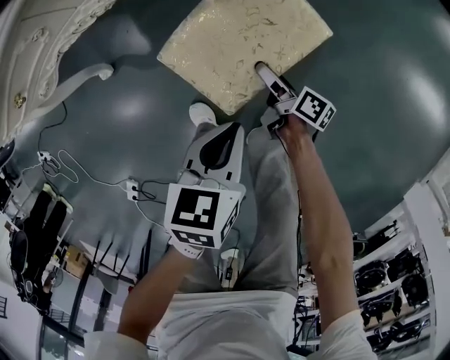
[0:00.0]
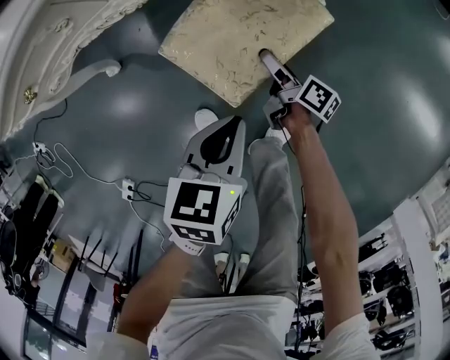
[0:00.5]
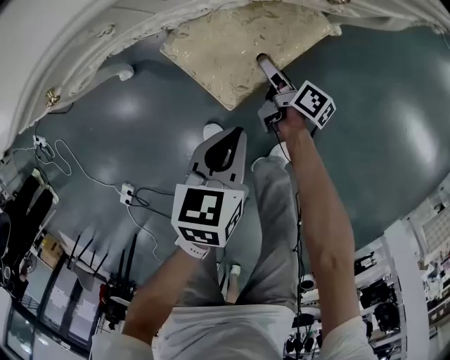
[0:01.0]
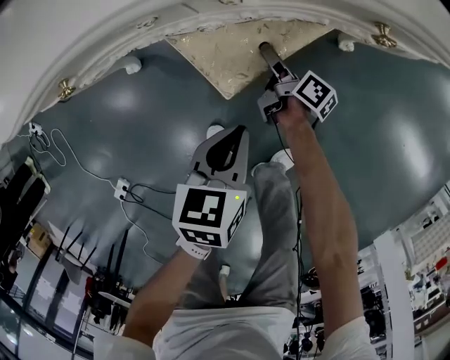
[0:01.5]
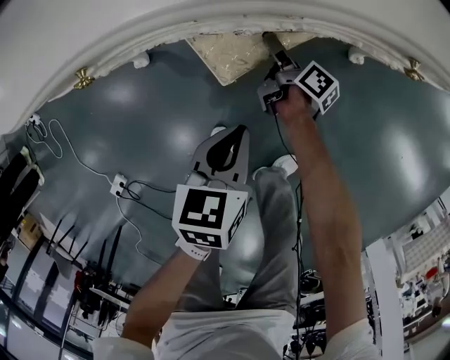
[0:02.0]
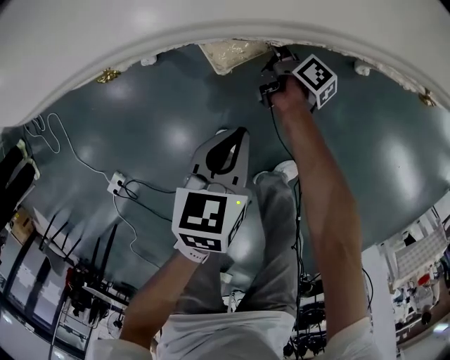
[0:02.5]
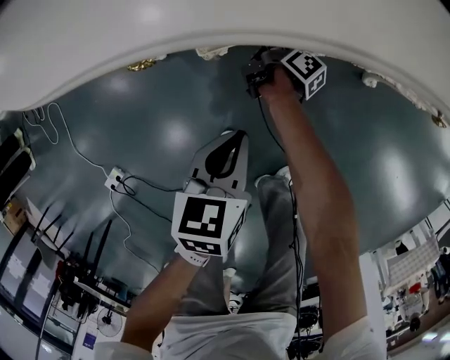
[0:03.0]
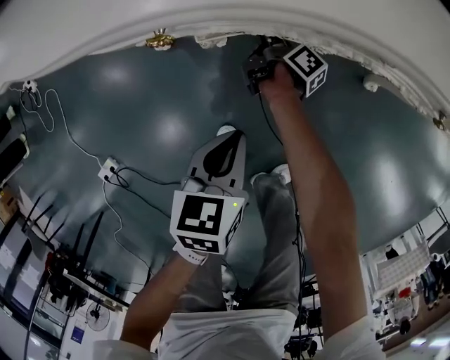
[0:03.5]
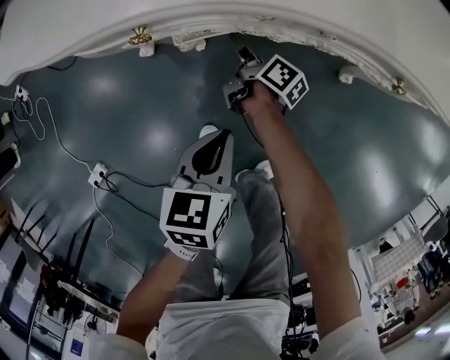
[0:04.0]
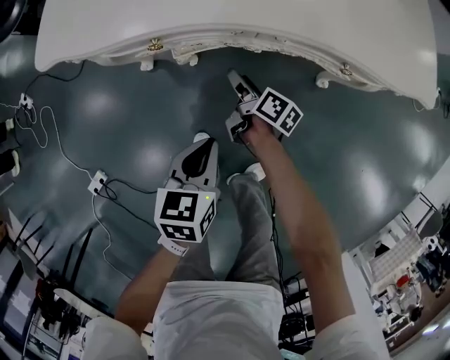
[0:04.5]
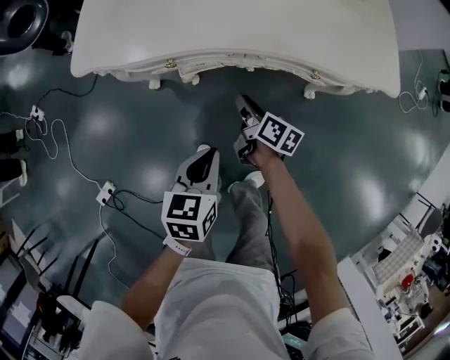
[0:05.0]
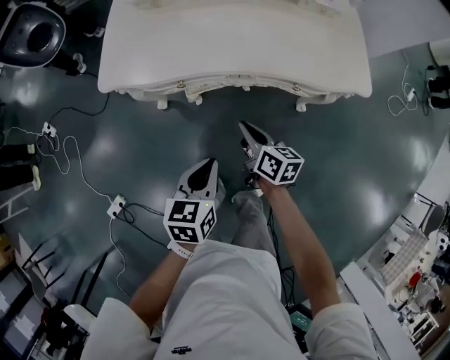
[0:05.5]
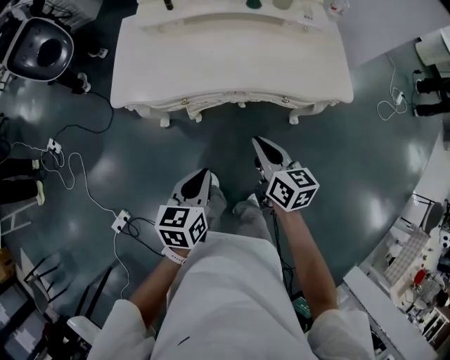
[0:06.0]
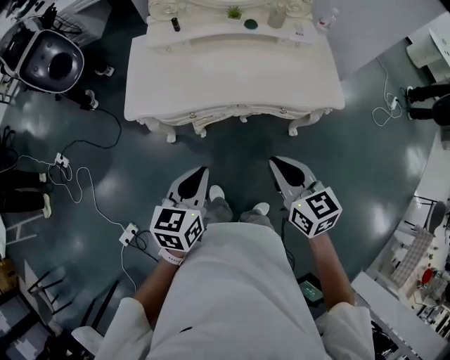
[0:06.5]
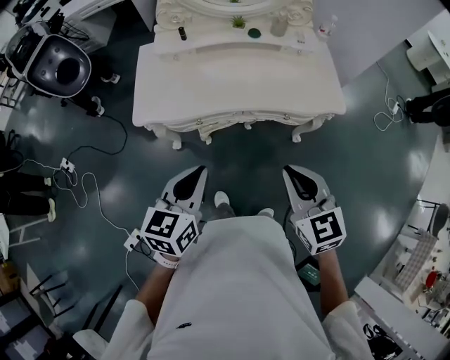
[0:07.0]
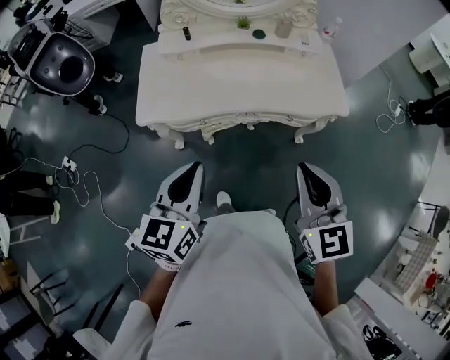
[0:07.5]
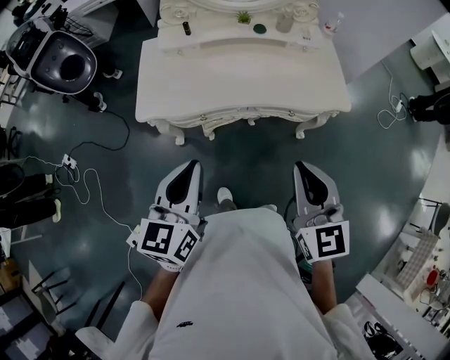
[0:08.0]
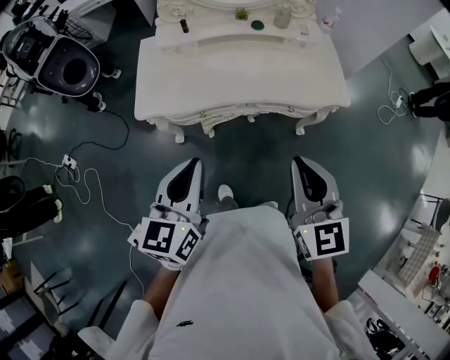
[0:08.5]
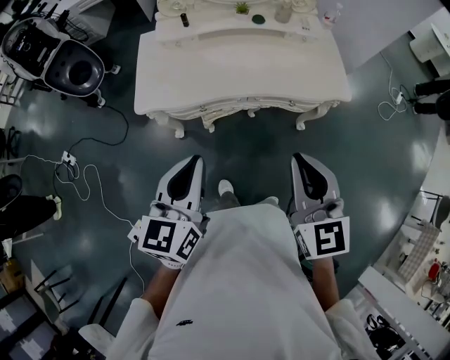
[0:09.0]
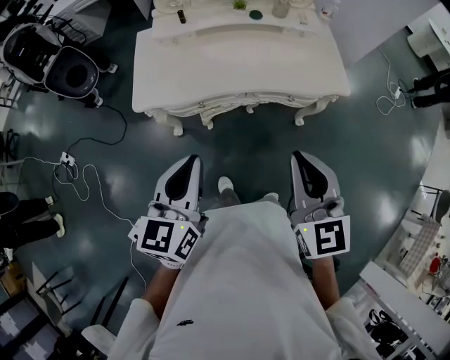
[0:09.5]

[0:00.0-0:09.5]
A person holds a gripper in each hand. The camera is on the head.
0.0 to 2.0 s: The left gripper travels to the left and forward by about 20 cm, and turns by some 20 degrees. Meanwhile the right gripper moves forward and to the left, some 30 cm.
2.0 to 4.0 s: The right gripper heads to the left and upward, covering some 15 cm, while the left gripper moves roughly 5 cm.
4.0 to 5.5 s: The left gripper heads upward, covering approximately 25 cm. Meanwhile the right gripper goes roughly 40 cm upward and backward, turns by some 30 degrees, and closes up.
5.5 to 7.5 s: The grippers both shift upward by about 30 cm. The right gripper rotates around the line of its fingers by roughly 50 degrees, counterclockwise from behind. The left gripper swivels about 30 degrees.
7.5 to 9.5 s: The grippers move only a little.

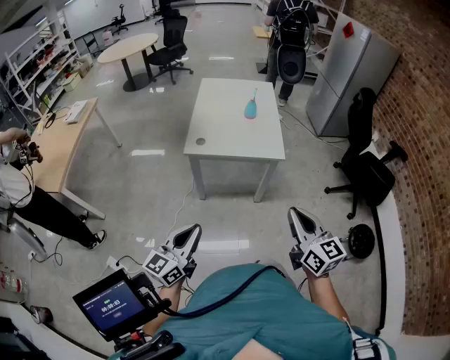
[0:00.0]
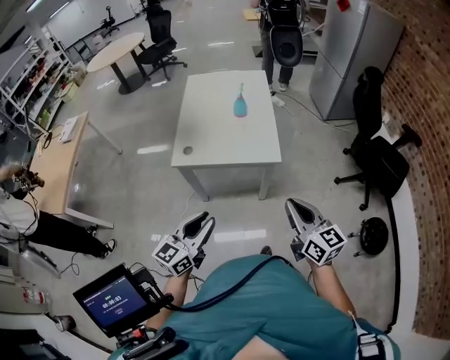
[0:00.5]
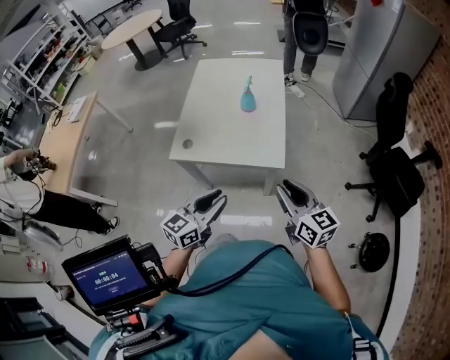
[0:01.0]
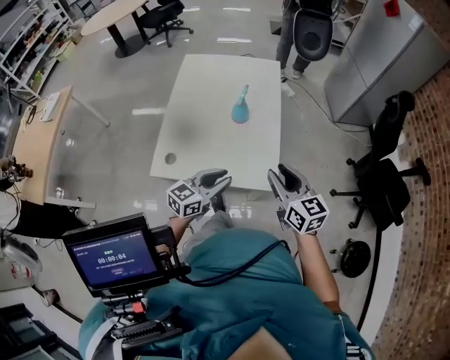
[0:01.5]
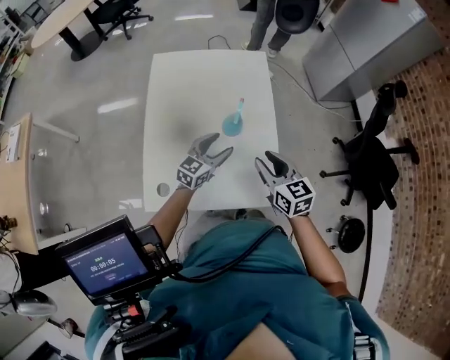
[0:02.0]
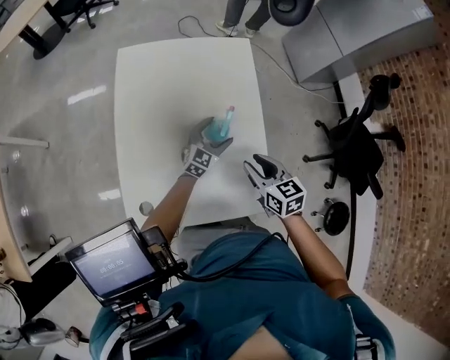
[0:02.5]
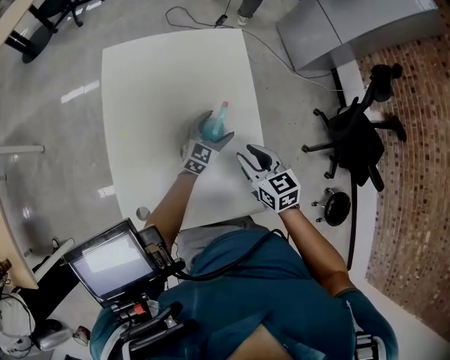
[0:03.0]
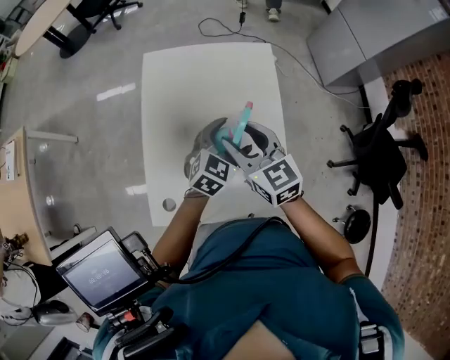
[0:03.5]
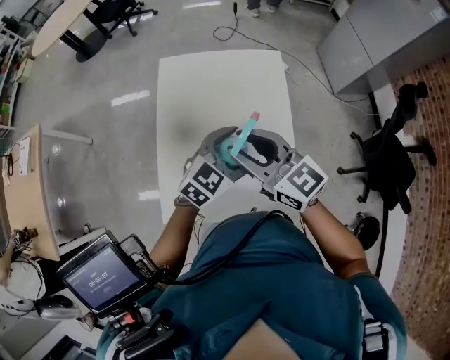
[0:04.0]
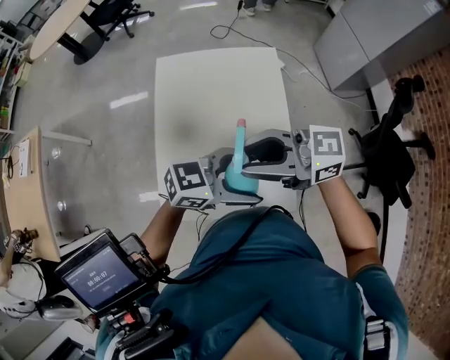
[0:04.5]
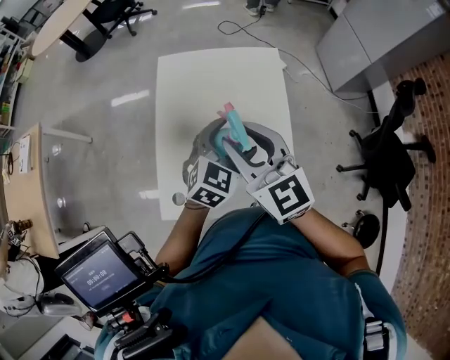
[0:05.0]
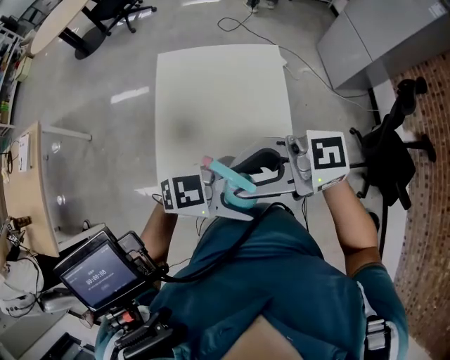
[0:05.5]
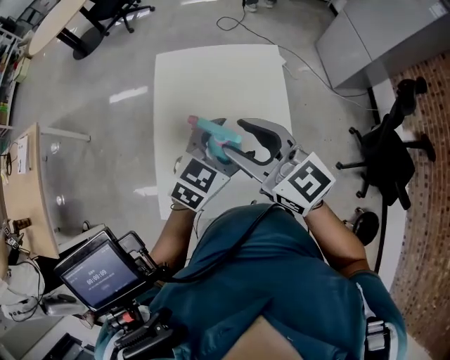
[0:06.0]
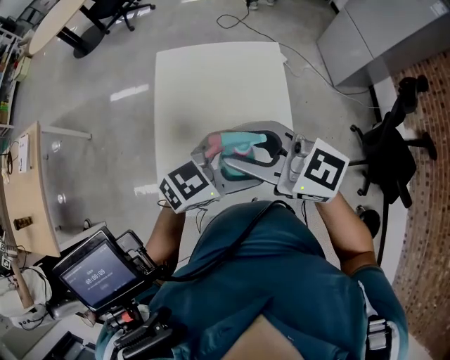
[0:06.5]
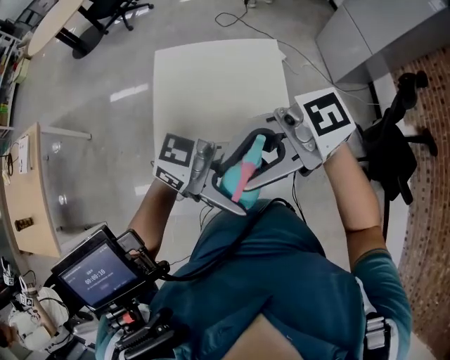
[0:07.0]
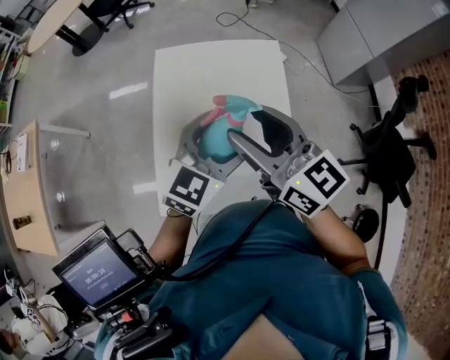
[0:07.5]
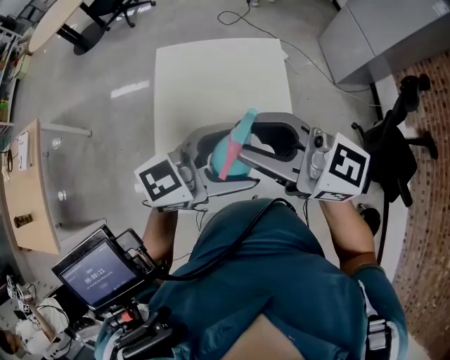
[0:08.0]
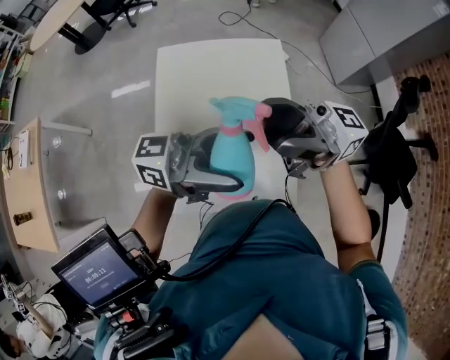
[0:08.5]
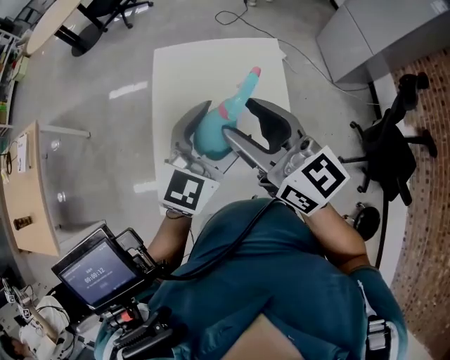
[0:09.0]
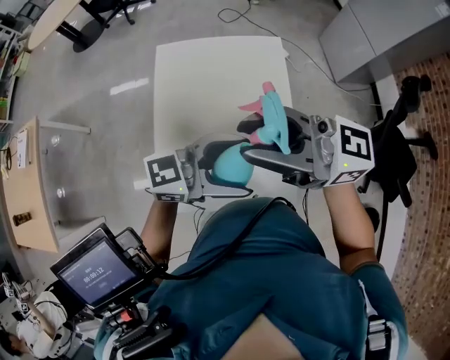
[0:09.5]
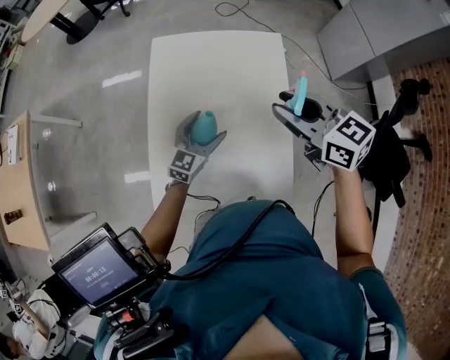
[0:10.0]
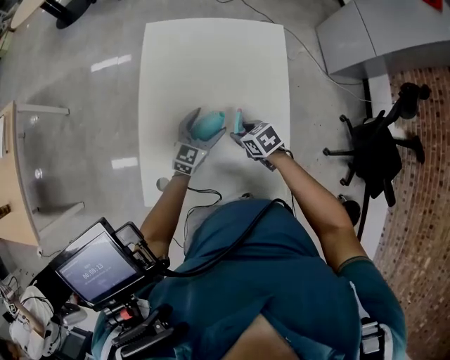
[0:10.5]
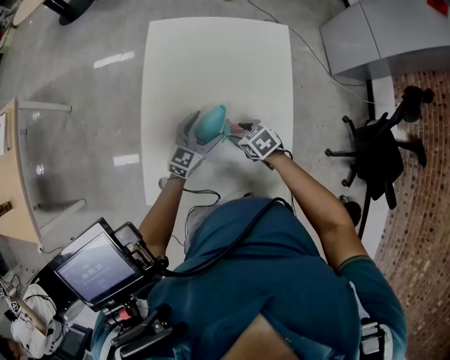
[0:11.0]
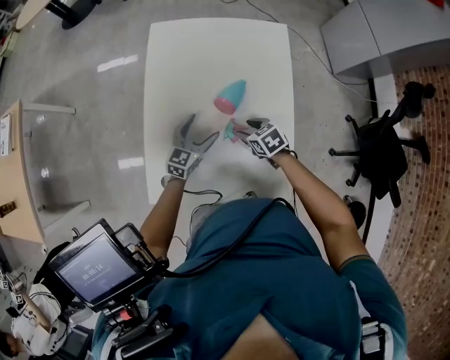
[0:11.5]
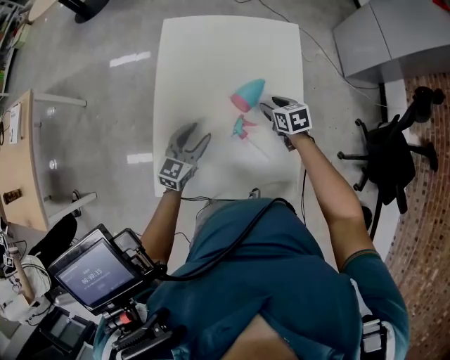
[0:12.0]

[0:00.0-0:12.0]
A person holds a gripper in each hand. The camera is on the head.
0.0 to 2.0 s: The pair of grippers is taken forward, roughly 60 cm. The left gripper changes its angle by about 20 degrees, and opens up; the right gripper opens up.
2.0 to 4.0 s: The left gripper moves upward, about 15 cm, swivels approximately 20 degrees, and opens up. Meanwhile the right gripper heads upward, to the left and forward, covering approximately 20 cm, and swivels roughly 30 degrees.
4.0 to 6.0 s: The left gripper moves up and down over approximately 5 cm, changing direction 2 times.
6.0 to 8.0 s: The left gripper swings up and down, roughly 10 cm each way, with 2 reversals, and turns by about 40 degrees, while the right gripper swings up and down, about 10 cm each way, with 2 reversals, and turns by roughly 20 degrees.
8.0 to 10.0 s: The left gripper shifts approximately 25 cm downward, and rotates about 40 degrees, while the right gripper changes place by some 15 cm, swivels approximately 30 degrees, and opens and closes again.
10.0 to 12.0 s: The right gripper heads downward, covering roughly 30 cm, and tips its fingers downward by roughly 30 degrees. Meanwhile the left gripper moves to the left, about 5 cm, and closes up.

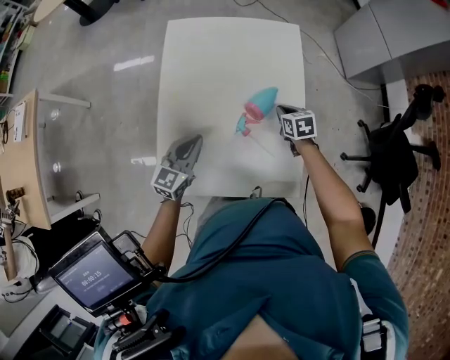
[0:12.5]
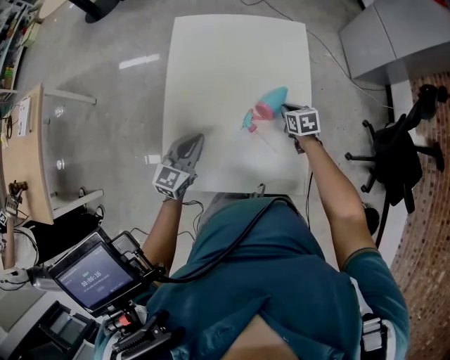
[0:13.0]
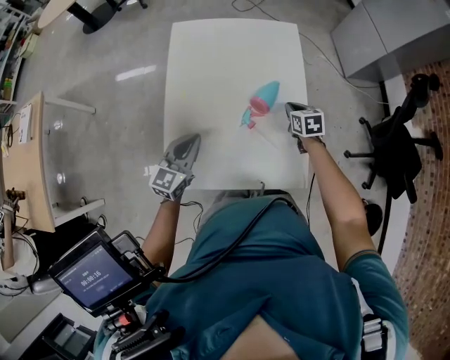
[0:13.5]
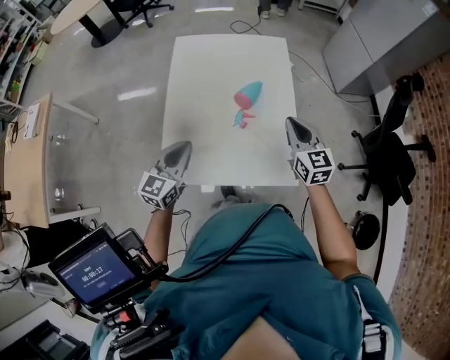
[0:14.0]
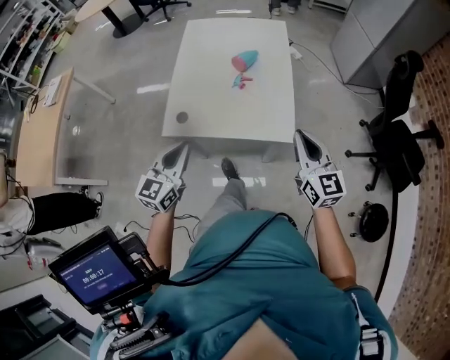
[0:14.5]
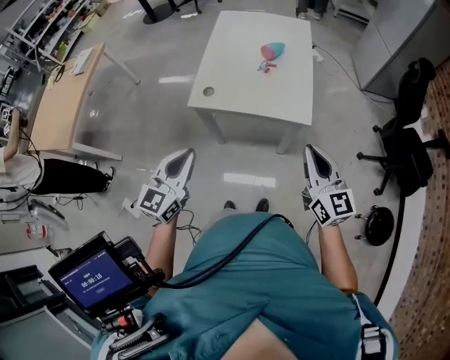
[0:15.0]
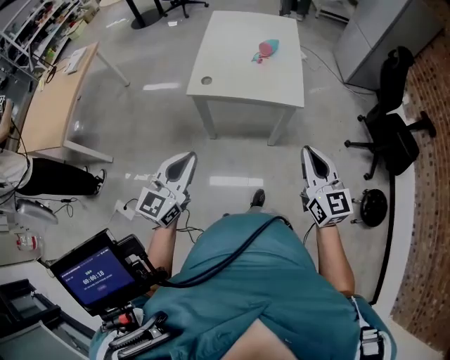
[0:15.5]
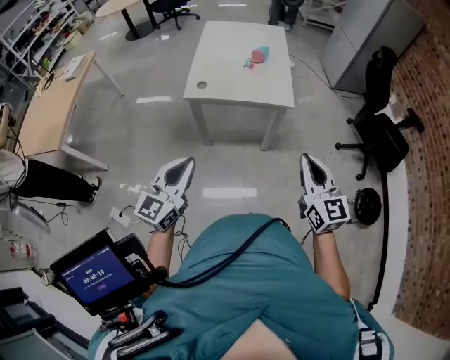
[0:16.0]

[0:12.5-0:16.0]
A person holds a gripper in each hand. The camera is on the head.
12.5 to 14.5 s: The left gripper travels backward by about 30 cm; the right gripper shifts roughly 40 cm backward and upward, and tilts its fingers roughly 50 degrees upward.
14.5 to 16.0 s: The grippers both shift backward by about 30 cm.

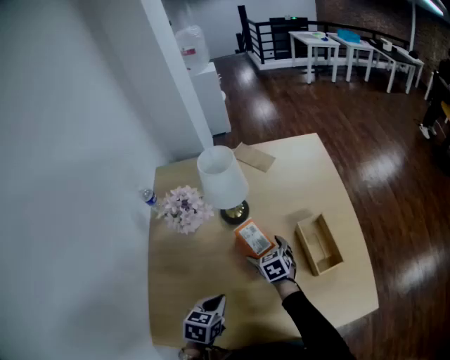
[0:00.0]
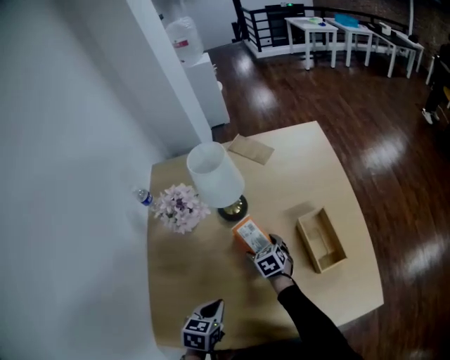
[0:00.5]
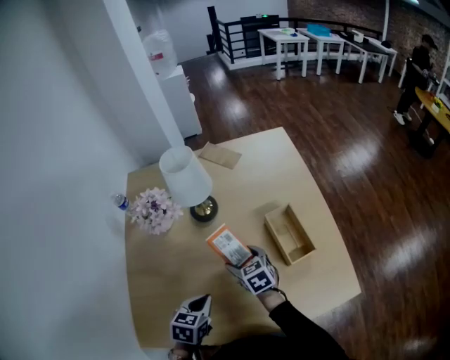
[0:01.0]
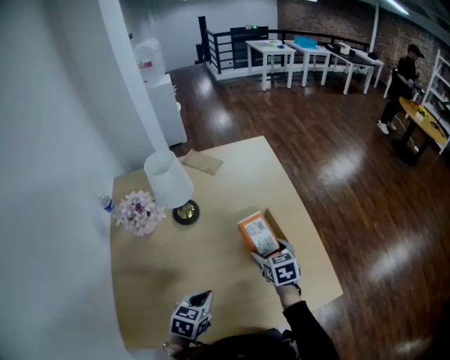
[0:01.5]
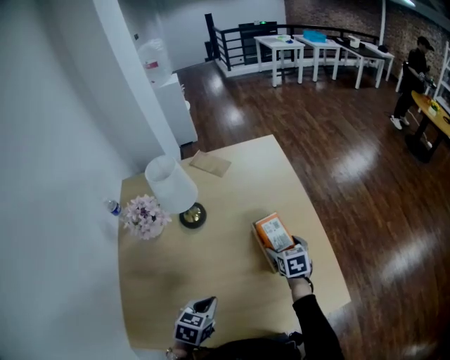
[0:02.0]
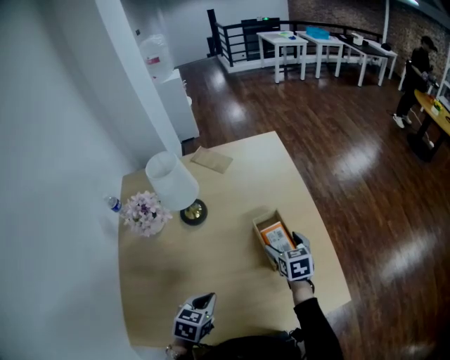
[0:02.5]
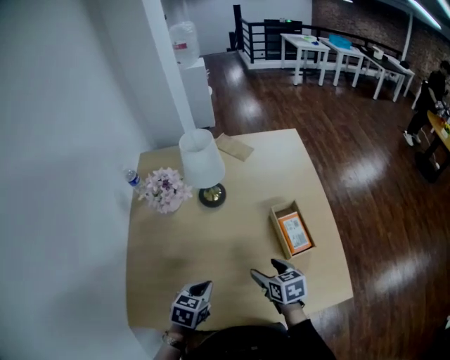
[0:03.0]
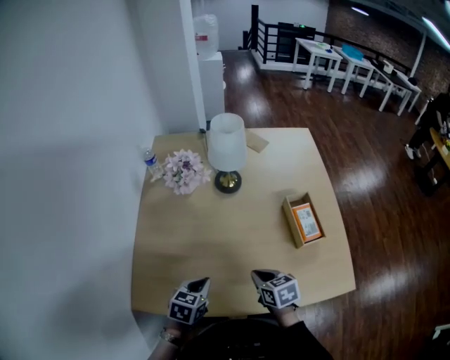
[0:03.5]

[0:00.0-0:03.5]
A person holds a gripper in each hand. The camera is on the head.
0.0 to 2.0 s: The right gripper travels to the right by about 25 cm, and rotates approximately 20 degrees, while the left gripper heads to the right, covering roughly 10 cm.
2.0 to 3.5 s: The left gripper moves to the left and backward, approximately 15 cm. Meanwhile the right gripper travels to the left and backward by some 30 cm, changes its angle by approximately 30 degrees, and closes its fingers.
